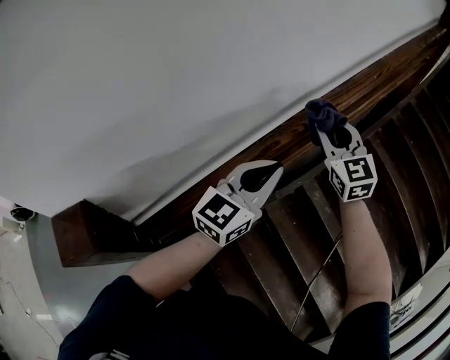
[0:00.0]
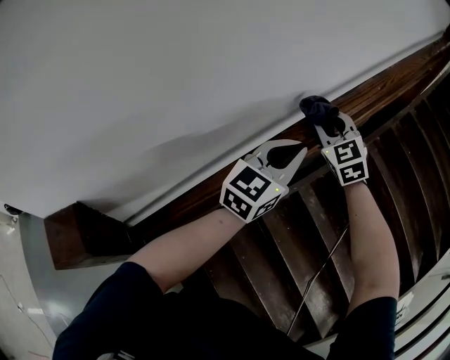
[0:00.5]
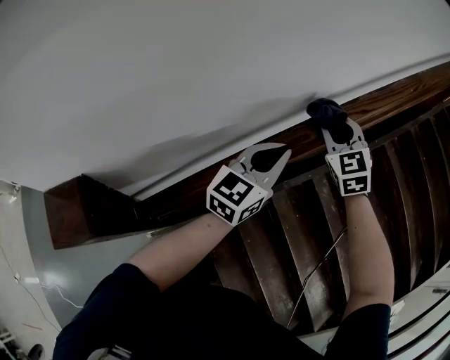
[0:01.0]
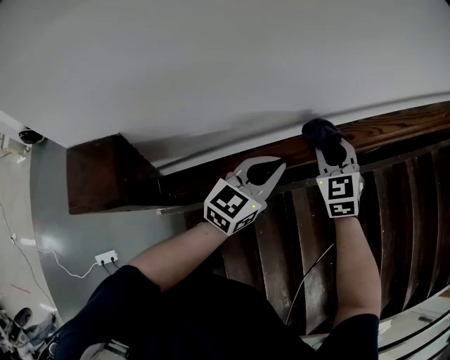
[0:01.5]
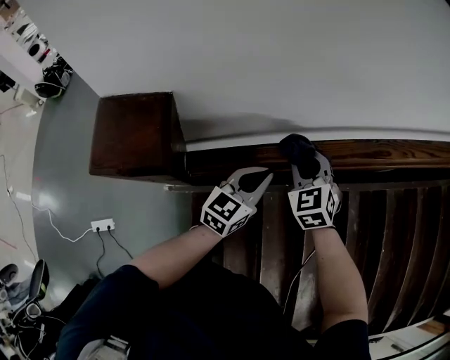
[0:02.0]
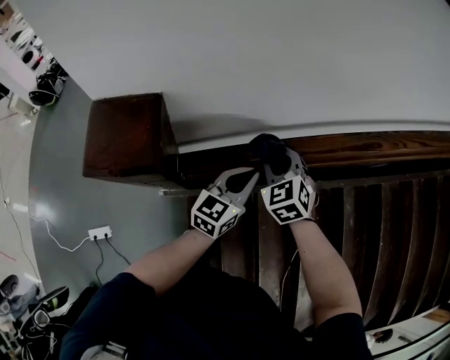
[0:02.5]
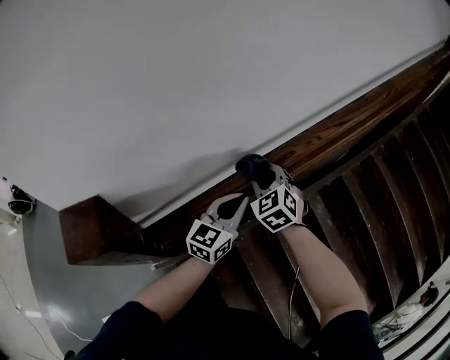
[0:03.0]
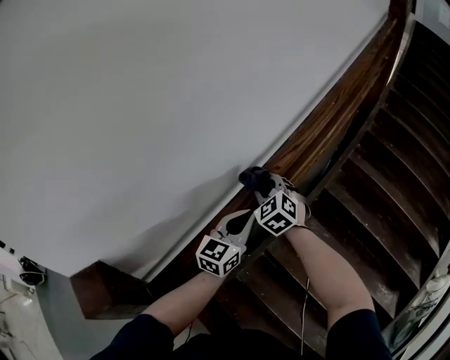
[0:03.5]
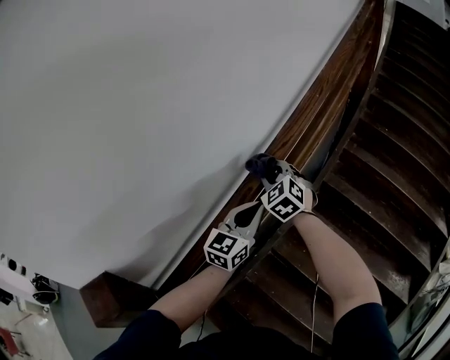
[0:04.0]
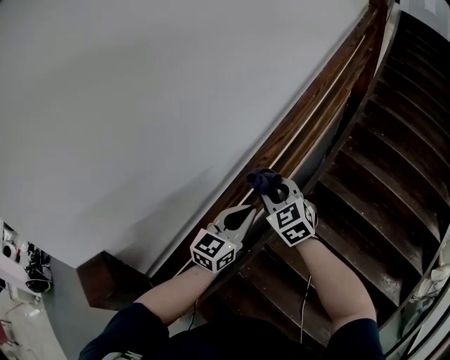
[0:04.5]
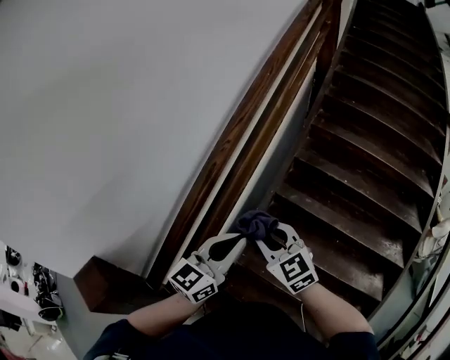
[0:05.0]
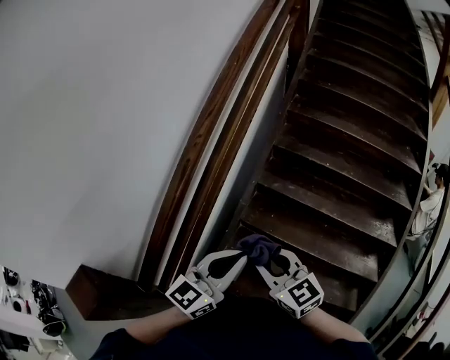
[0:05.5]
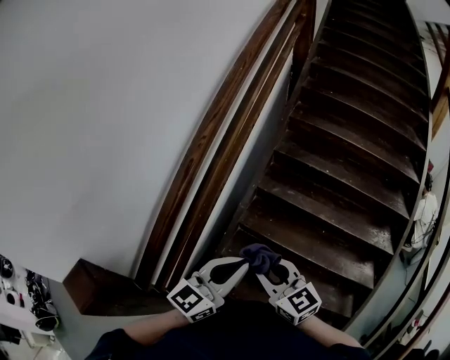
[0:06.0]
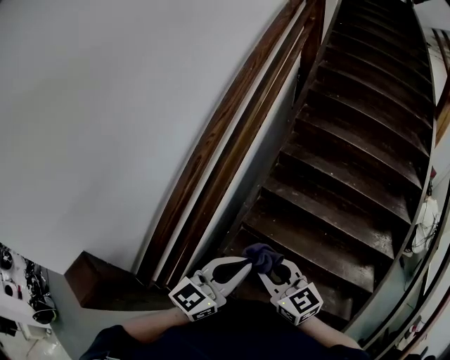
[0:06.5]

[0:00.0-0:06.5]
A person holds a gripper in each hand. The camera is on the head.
0:00.0 to 0:02.0: Both grippers move downward, to the left and backward, approximately 35 cm. The left gripper rotates about 30 degrees; the right gripper swivels approximately 40 degrees.
0:02.0 to 0:04.5: The right gripper moves approximately 30 cm, and changes its angle by approximately 30 degrees, while the left gripper ends up roughly 30 cm from where it was, and changes its angle by approximately 40 degrees.
0:04.5 to 0:06.5: Both grippers move backward and to the right, approximately 30 cm. The right gripper changes its angle by about 40 degrees. Meanwhile the left gripper swivels approximately 20 degrees.

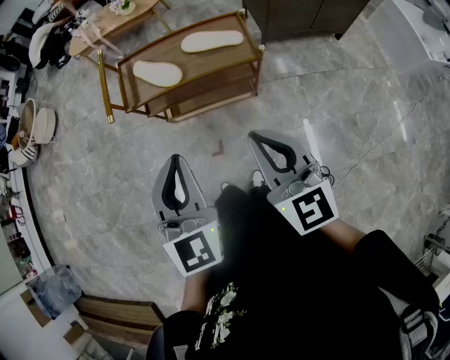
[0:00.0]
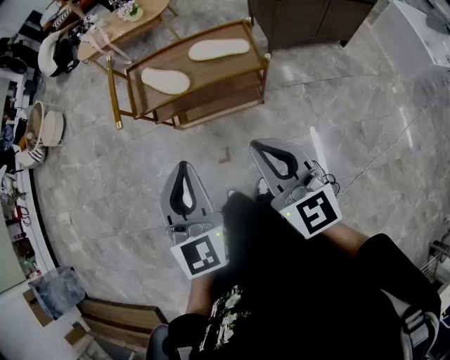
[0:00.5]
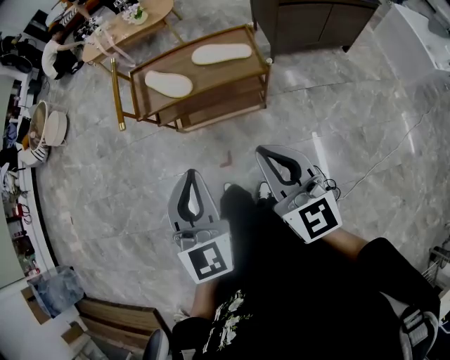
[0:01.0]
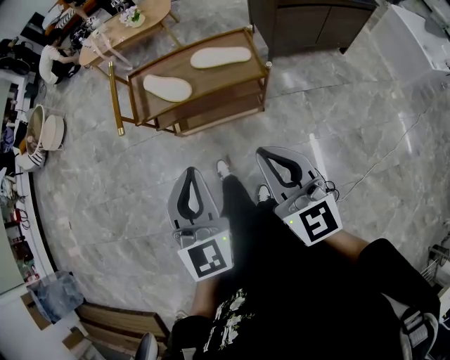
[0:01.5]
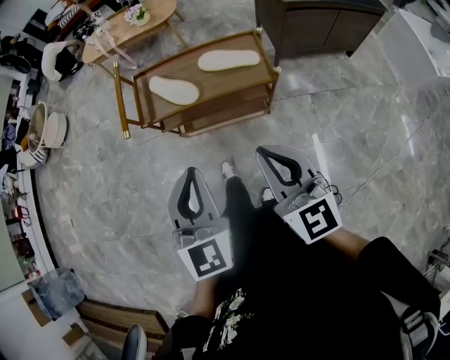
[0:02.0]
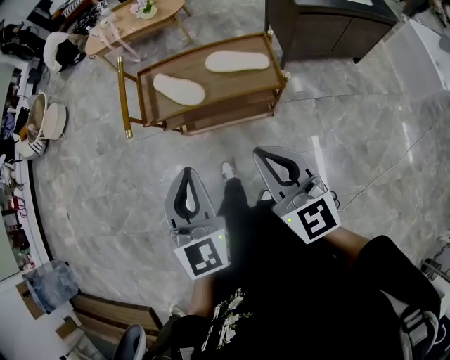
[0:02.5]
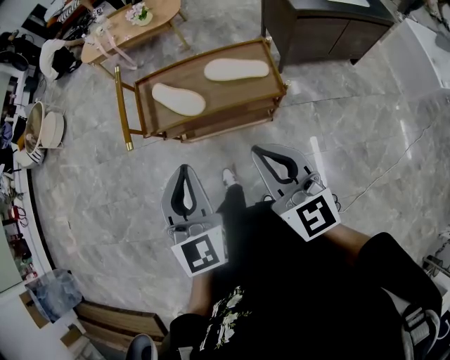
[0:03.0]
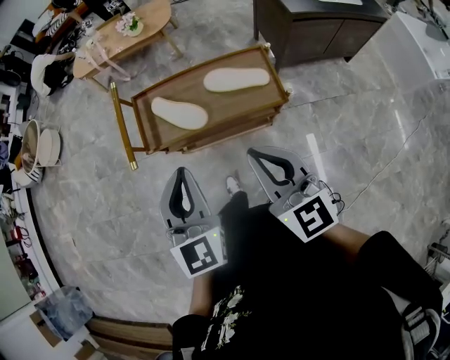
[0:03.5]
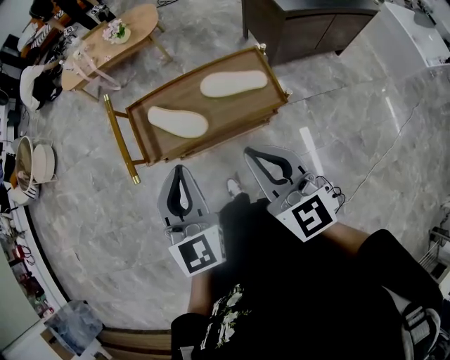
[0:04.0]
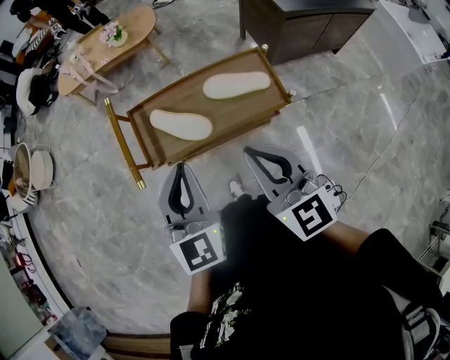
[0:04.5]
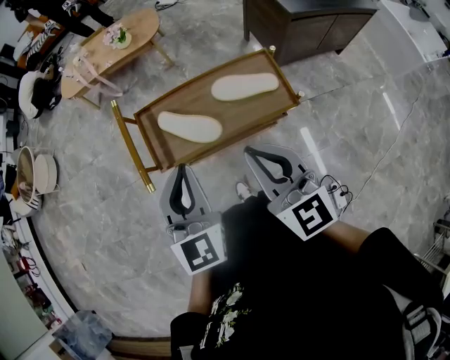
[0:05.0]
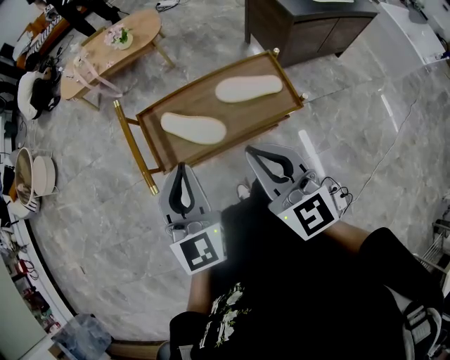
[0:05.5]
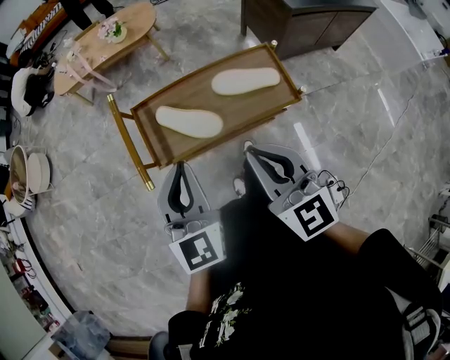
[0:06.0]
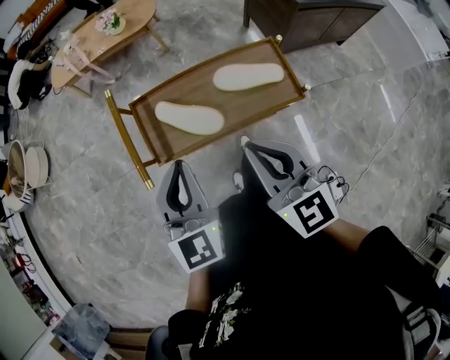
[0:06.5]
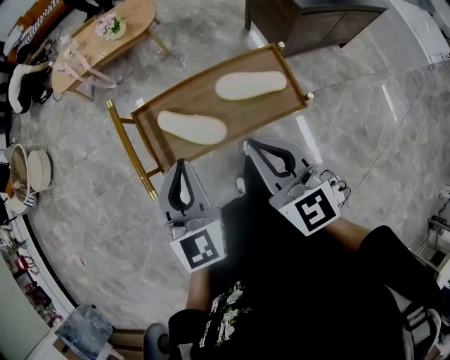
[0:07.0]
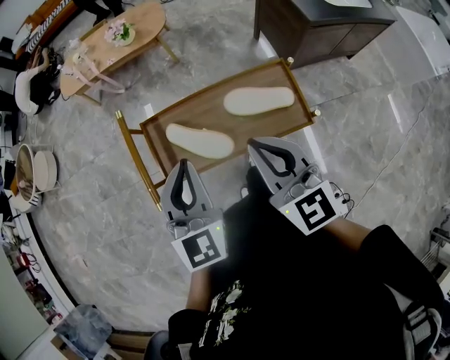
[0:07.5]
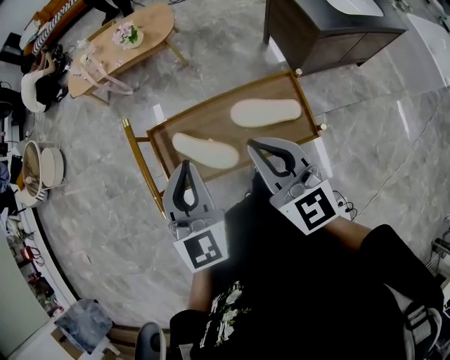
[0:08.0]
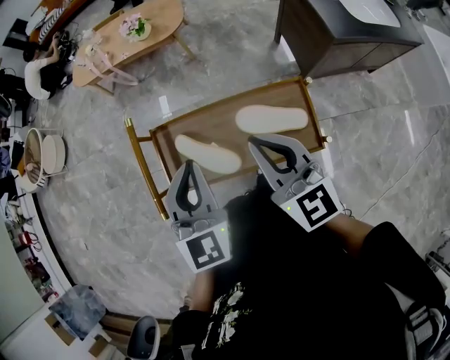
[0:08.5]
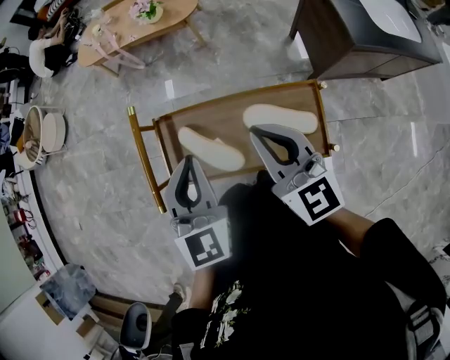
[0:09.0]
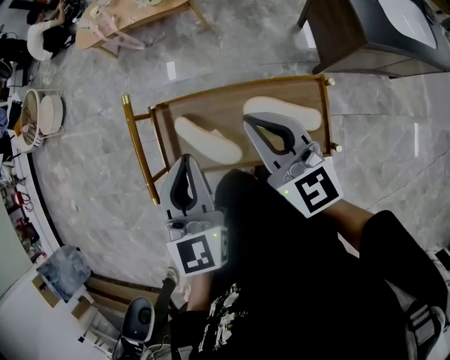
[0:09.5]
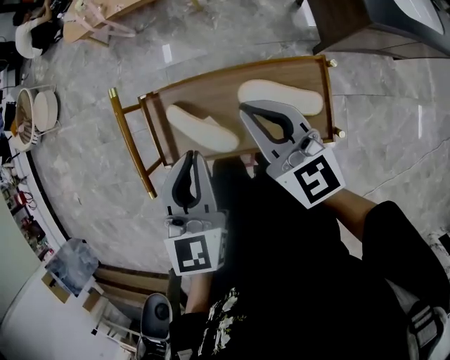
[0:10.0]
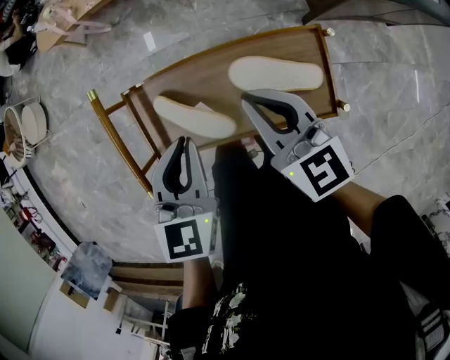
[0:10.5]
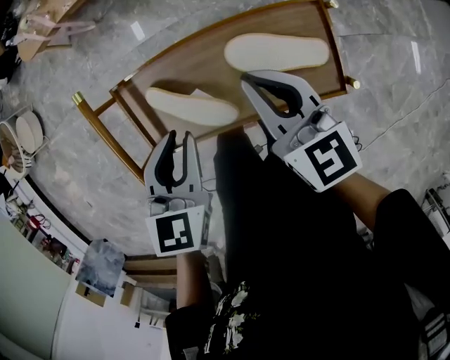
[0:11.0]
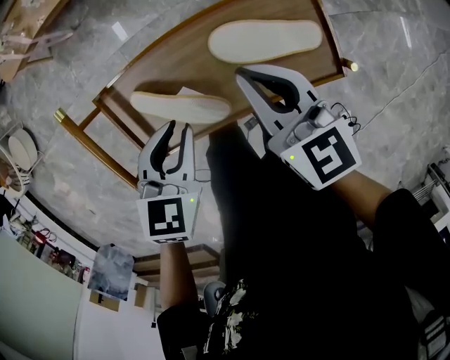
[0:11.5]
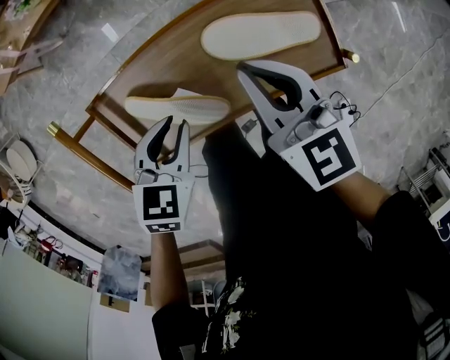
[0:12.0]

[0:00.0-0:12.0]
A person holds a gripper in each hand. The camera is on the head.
0:00.0 to 0:02.0: The grippers stay close to where they were, moving slightly.
0:02.0 to 0:04.0: The two grippers go about 15 cm forward.
0:04.0 to 0:06.0: The two grippers go approximately 5 cm to the left.
0:06.0 to 0:08.0: The grippers both shift forward by approximately 15 cm.
0:08.0 to 0:10.0: The right gripper moves forward and downward, about 10 cm; the left gripper moves downward, some 5 cm.
0:10.0 to 0:12.0: The left gripper moves downward, about 20 cm, and rotates approximately 50 degrees. Meanwhile the right gripper is displaced downward by roughly 10 cm, and rotates some 20 degrees.

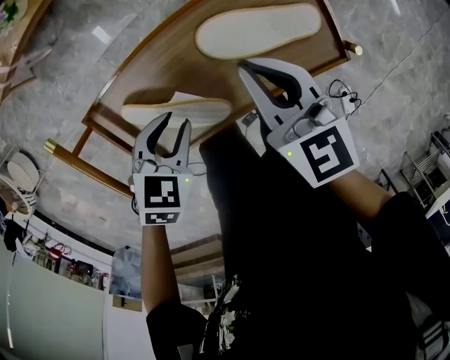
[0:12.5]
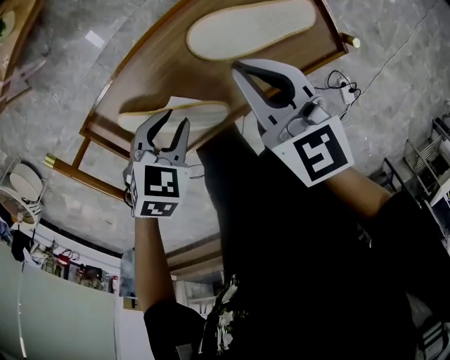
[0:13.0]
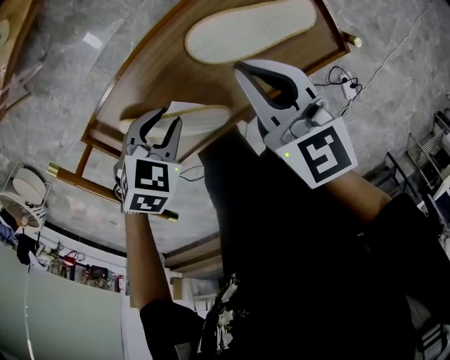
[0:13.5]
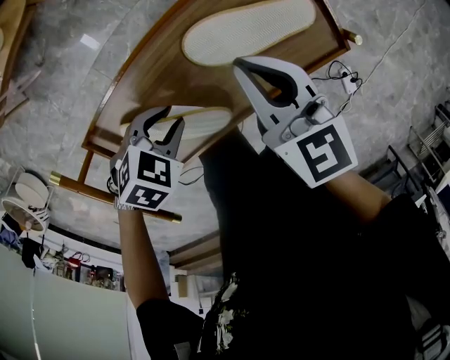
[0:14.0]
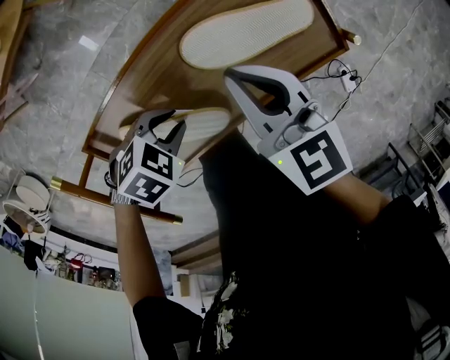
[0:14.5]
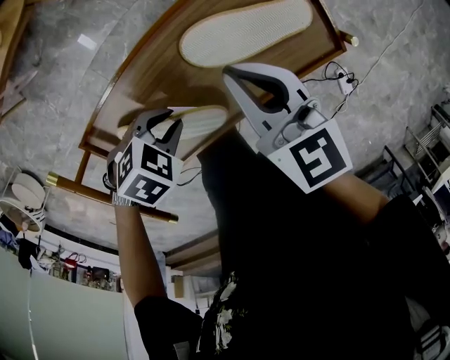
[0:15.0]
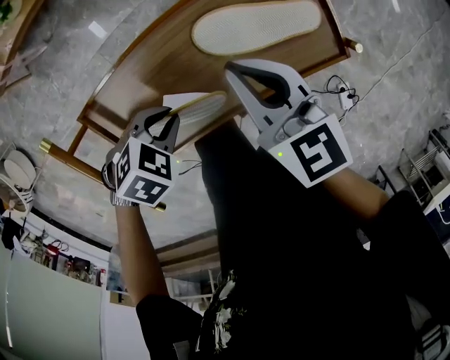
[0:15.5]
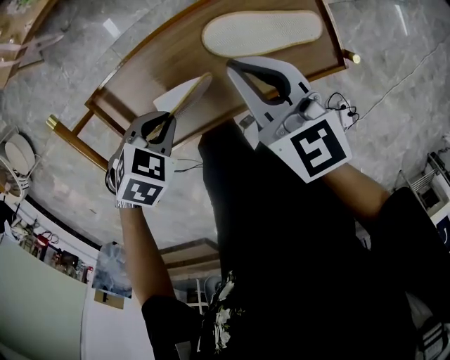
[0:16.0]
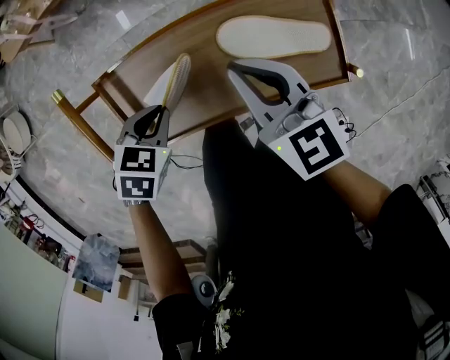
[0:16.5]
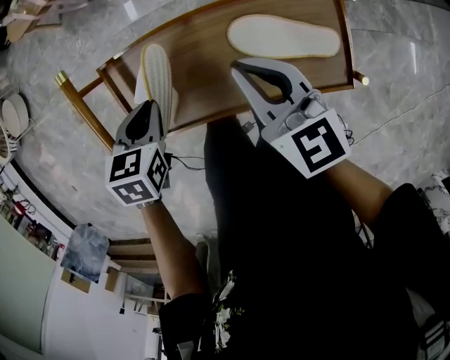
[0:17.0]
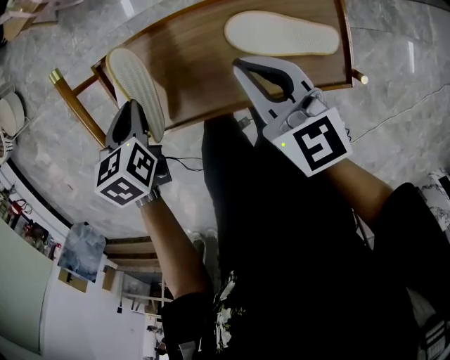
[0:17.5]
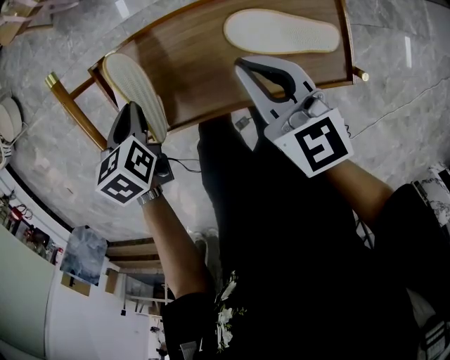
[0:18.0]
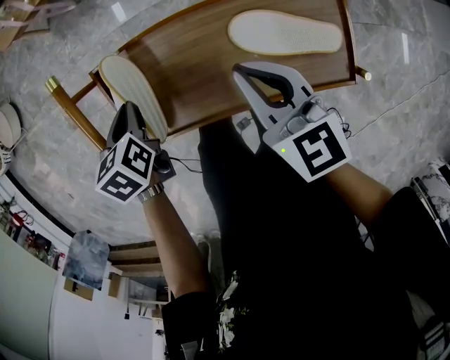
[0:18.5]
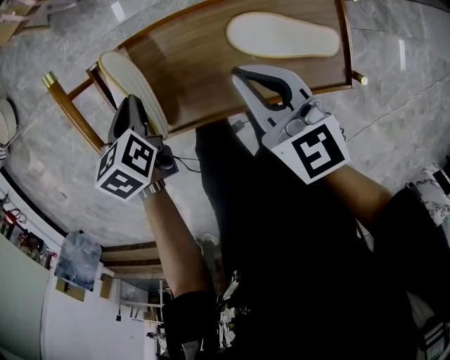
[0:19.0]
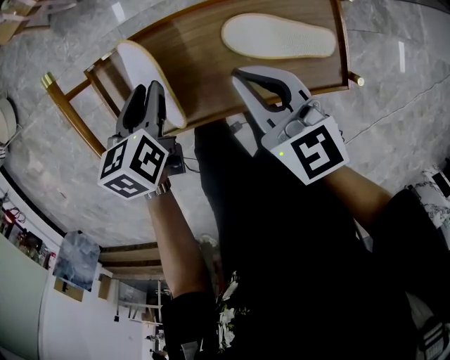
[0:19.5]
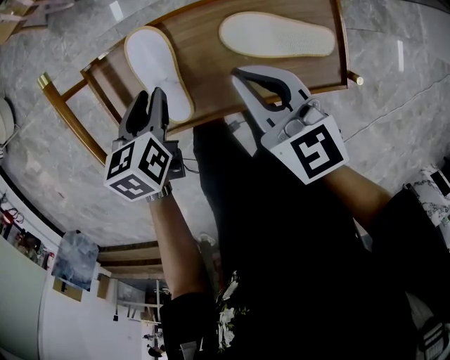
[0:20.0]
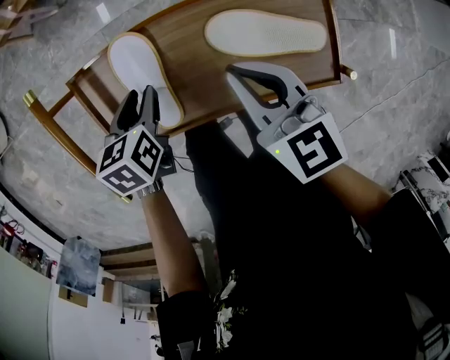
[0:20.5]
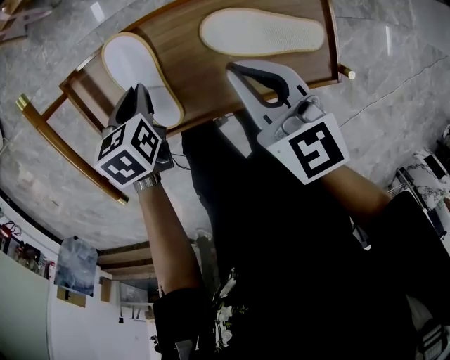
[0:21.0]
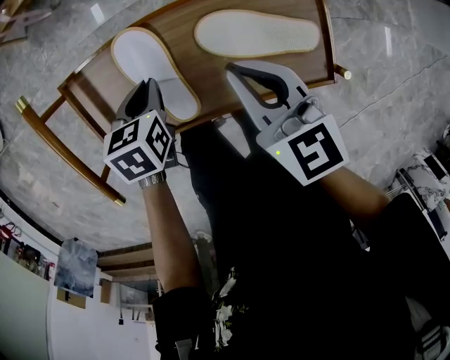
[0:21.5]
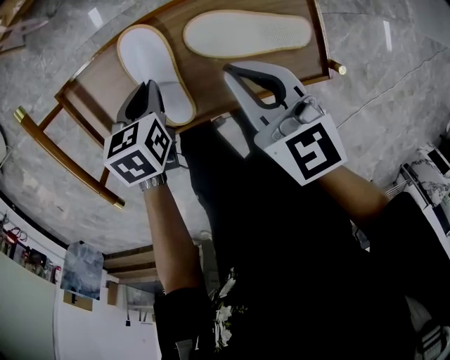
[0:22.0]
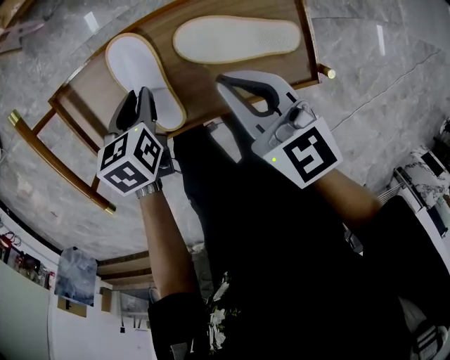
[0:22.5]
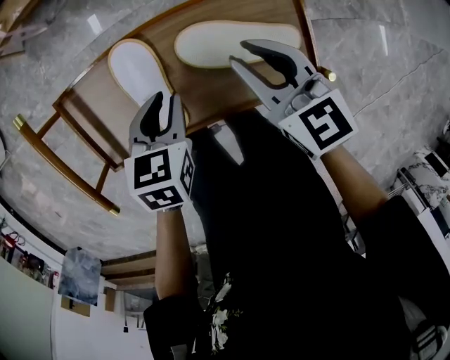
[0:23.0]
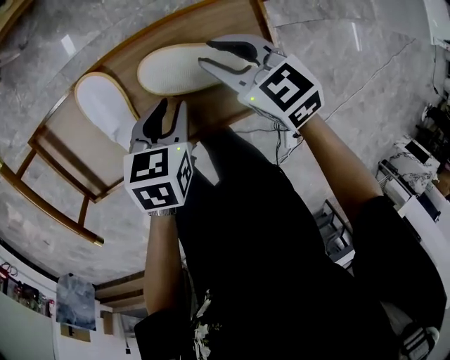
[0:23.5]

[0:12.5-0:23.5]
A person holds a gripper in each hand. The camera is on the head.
0:12.5 to 0:14.5: The left gripper goes roughly 5 cm downward, and changes its angle by some 40 degrees.
0:14.5 to 0:16.0: The right gripper ends up roughly 5 cm from where it was, while the left gripper heads upward, covering approximately 5 cm, and turns by some 20 degrees.
0:16.0 to 0:18.0: The left gripper ends up about 10 cm from where it was, and rolls counterclockwise, seen from behind, by some 60 degrees.
0:18.0 to 0:20.0: The left gripper heads to the right, covering roughly 5 cm, and opens its fingers.
0:20.0 to 0:21.5: The left gripper moves approximately 5 cm, and closes up.
0:21.5 to 0:23.5: The right gripper travels to the right, downward and forward by about 15 cm, and opens. The left gripper travels to the right by about 15 cm, and opens up.
